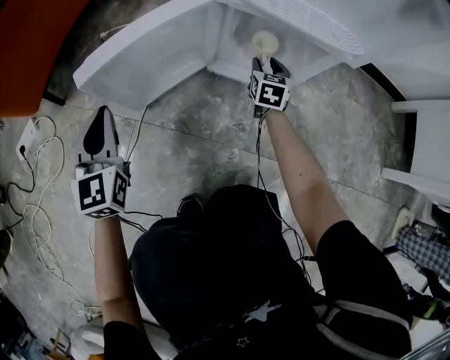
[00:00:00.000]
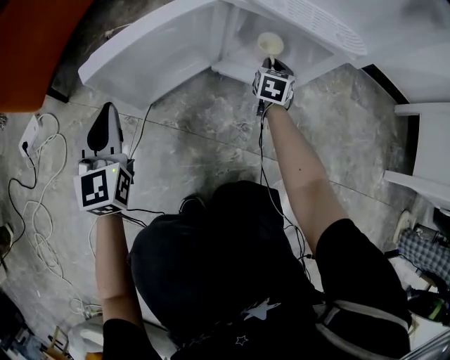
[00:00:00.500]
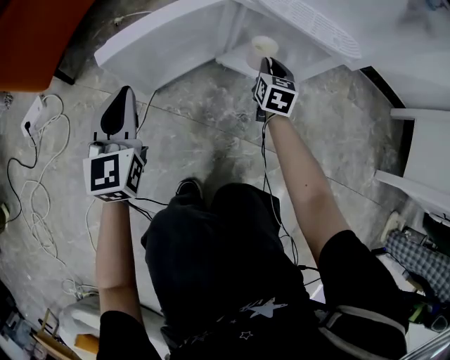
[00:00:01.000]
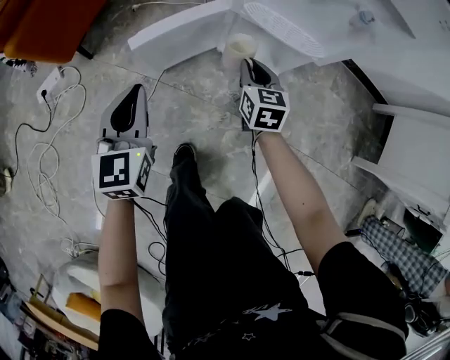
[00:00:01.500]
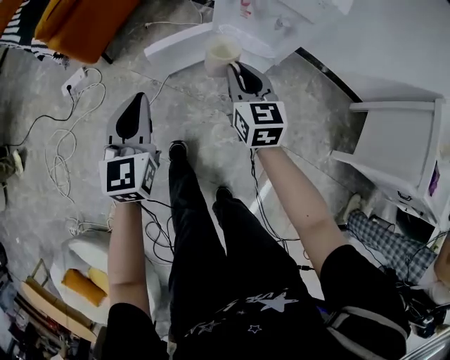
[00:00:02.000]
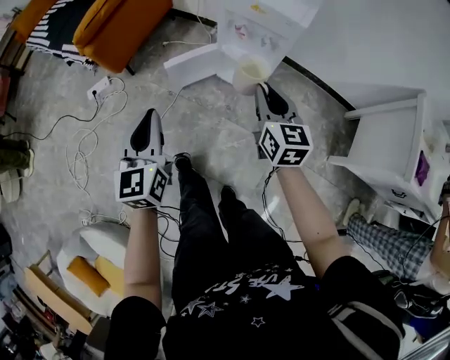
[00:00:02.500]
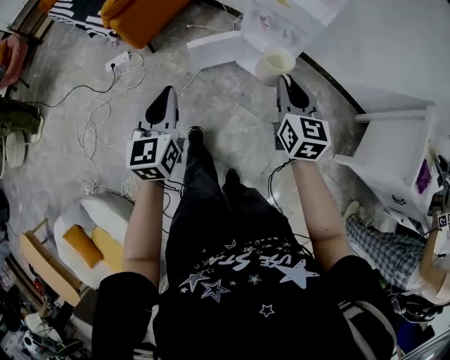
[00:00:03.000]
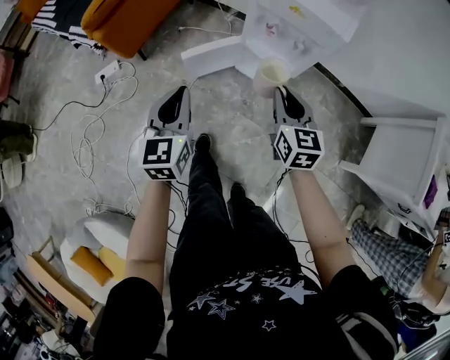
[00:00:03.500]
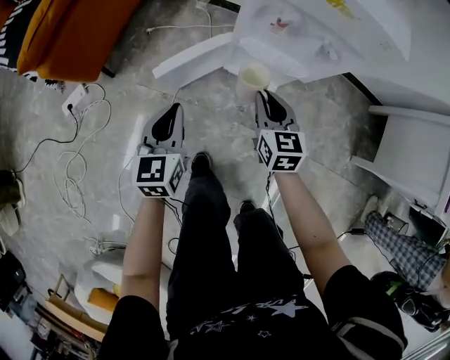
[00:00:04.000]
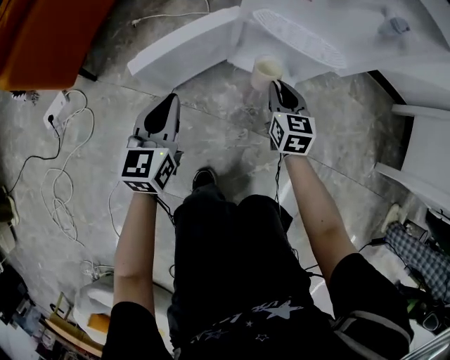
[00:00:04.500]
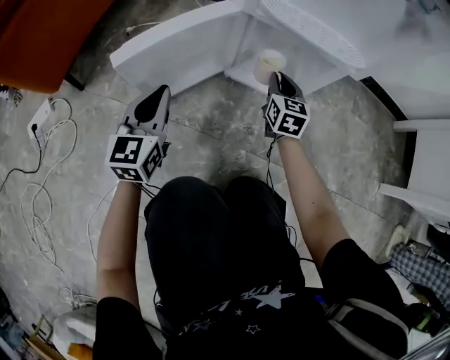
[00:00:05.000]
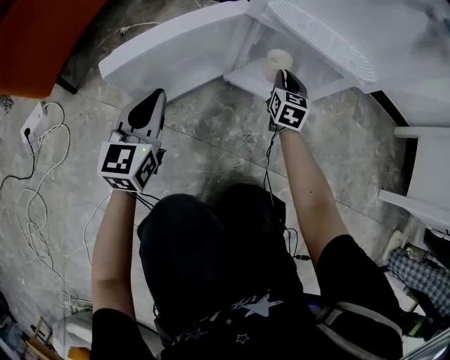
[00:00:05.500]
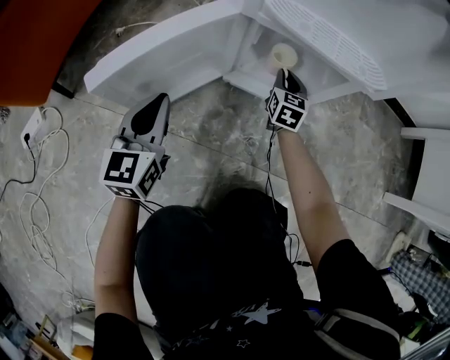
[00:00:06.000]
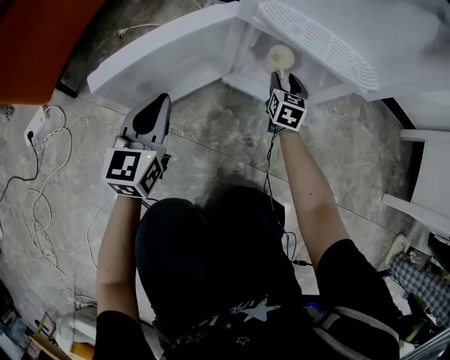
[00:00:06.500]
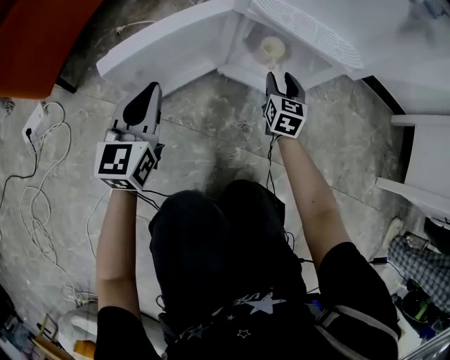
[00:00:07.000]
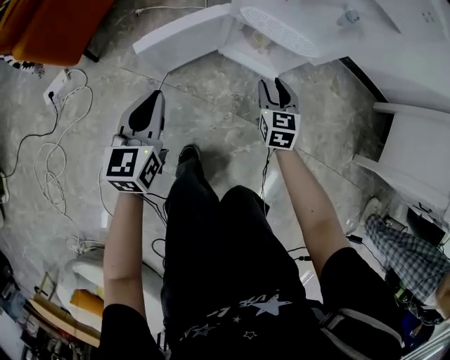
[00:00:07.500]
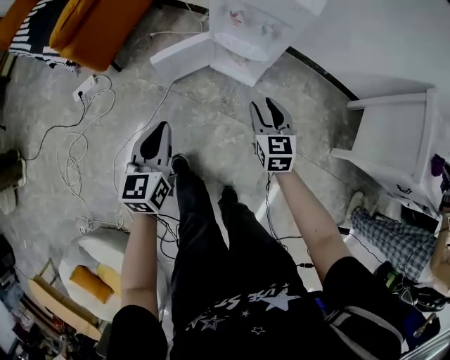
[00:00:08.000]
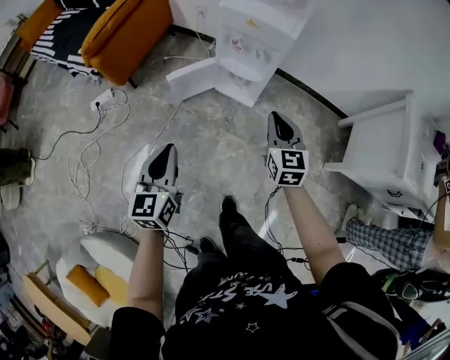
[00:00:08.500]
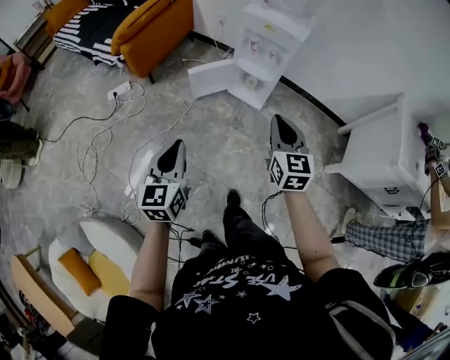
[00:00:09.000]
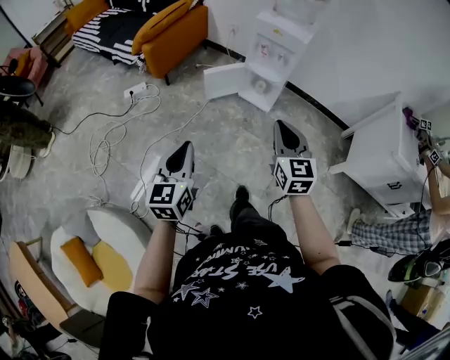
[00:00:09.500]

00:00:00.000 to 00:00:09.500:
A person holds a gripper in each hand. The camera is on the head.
00:00:00.000 to 00:00:02.000: Both grippers move upward and backward, approximately 50 cm. The right gripper turns by about 30 degrees, and closes up.
00:00:02.000 to 00:00:04.000: The grippers both shift downward and forward by roughly 15 cm.
00:00:04.000 to 00:00:05.500: The right gripper is displaced downward and forward by some 40 cm, while the left gripper shifts roughly 30 cm downward.
00:00:05.500 to 00:00:07.500: The two grippers go some 25 cm upward and backward. The right gripper opens.
00:00:07.500 to 00:00:09.500: Both grippers are carried backward, approximately 50 cm. The two grippers go about 50 cm upward. The right gripper swivels approximately 30 degrees, and closes its fingers.

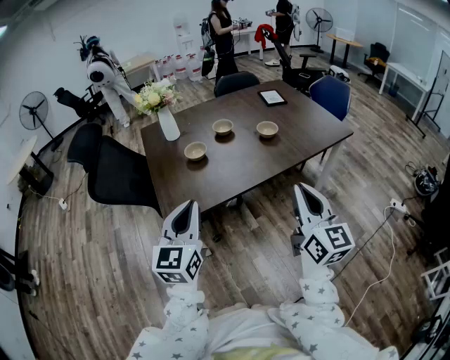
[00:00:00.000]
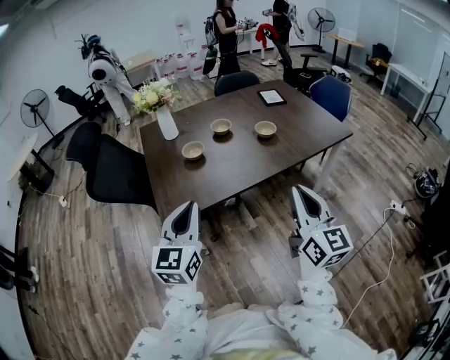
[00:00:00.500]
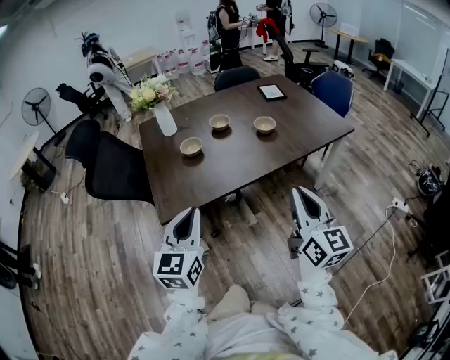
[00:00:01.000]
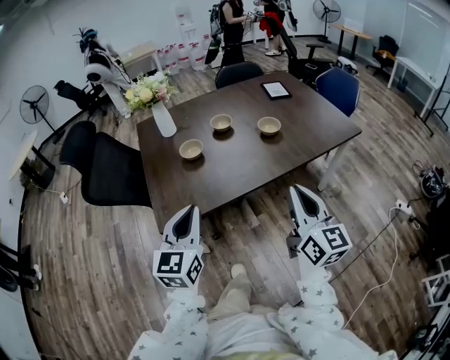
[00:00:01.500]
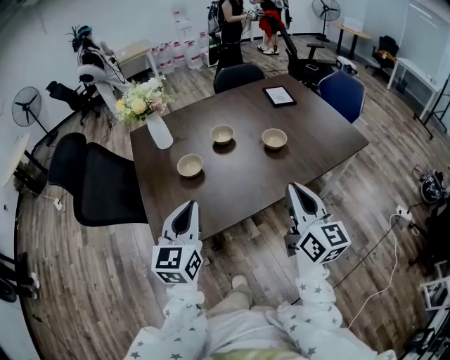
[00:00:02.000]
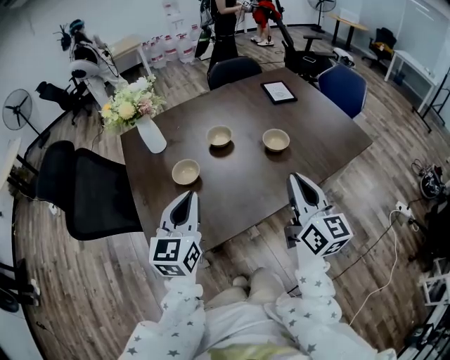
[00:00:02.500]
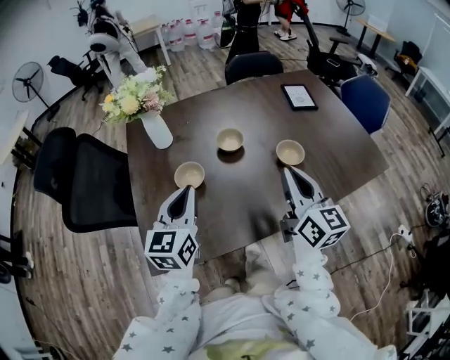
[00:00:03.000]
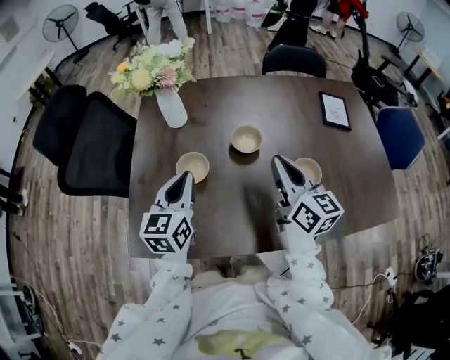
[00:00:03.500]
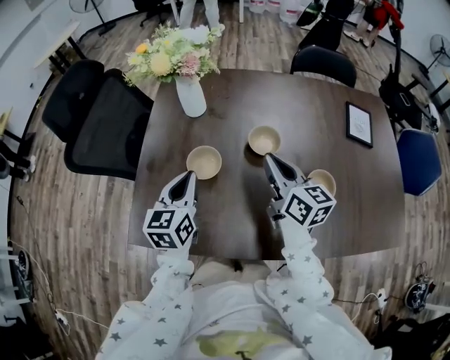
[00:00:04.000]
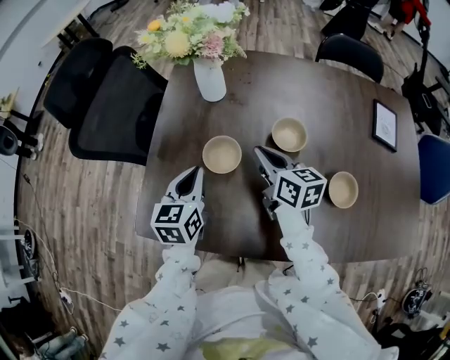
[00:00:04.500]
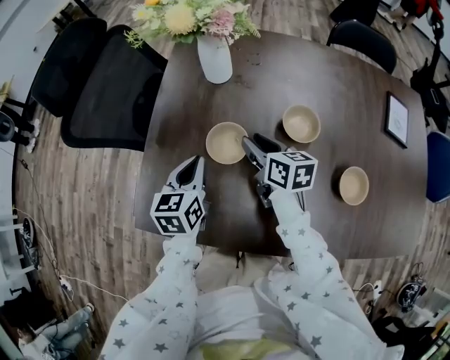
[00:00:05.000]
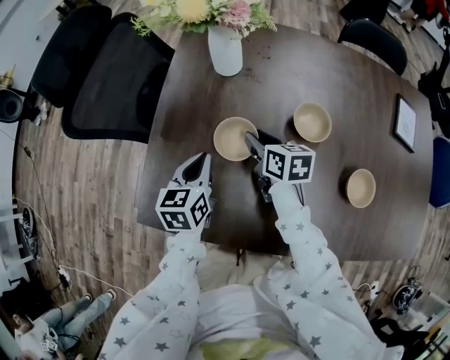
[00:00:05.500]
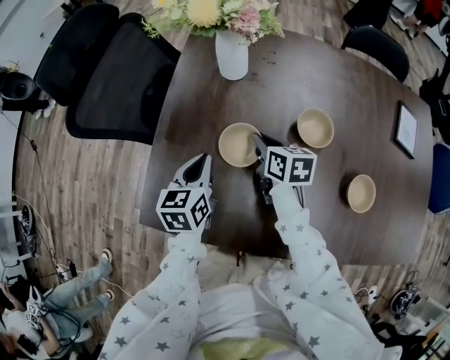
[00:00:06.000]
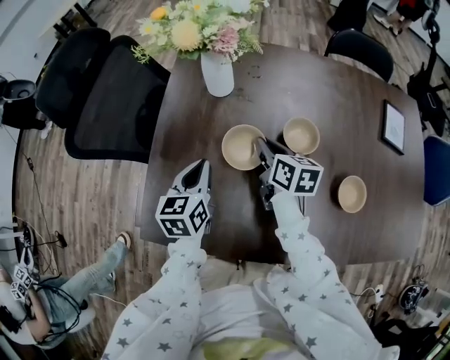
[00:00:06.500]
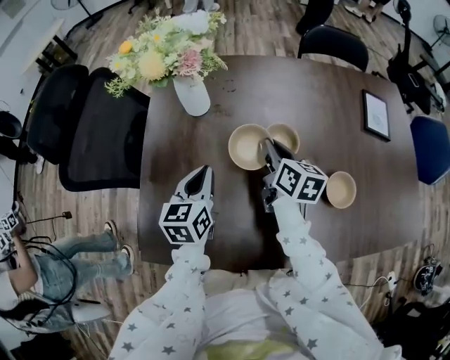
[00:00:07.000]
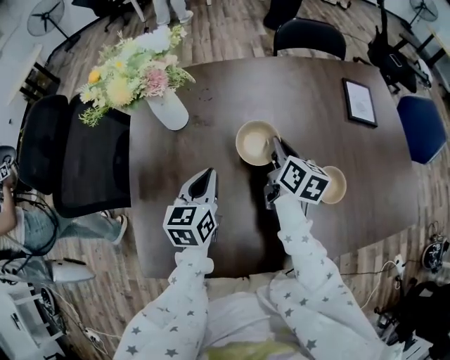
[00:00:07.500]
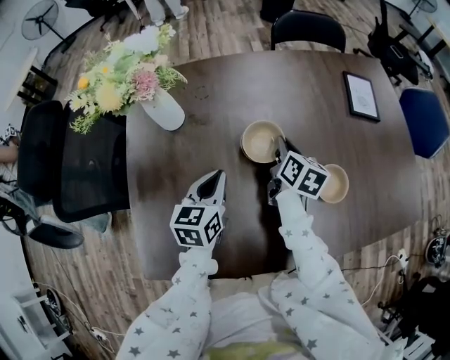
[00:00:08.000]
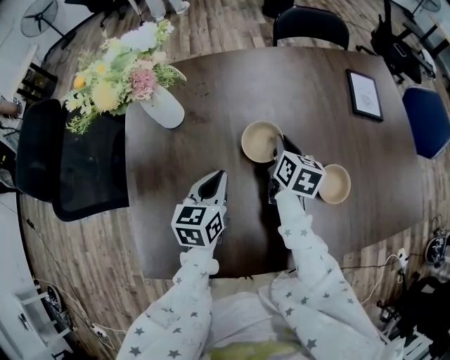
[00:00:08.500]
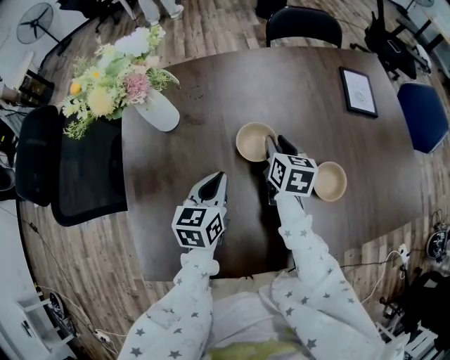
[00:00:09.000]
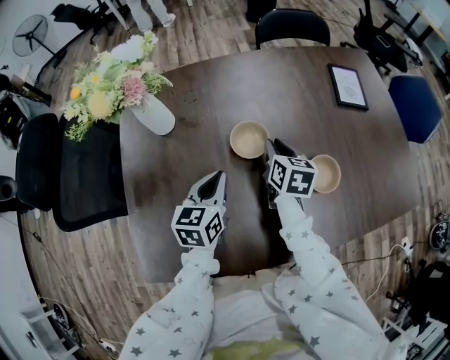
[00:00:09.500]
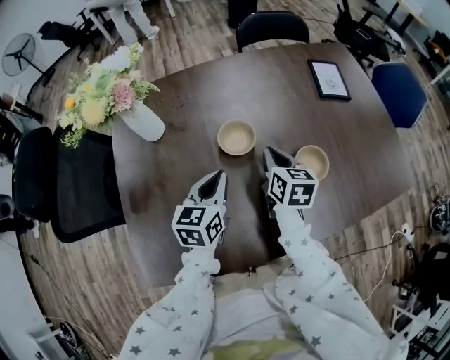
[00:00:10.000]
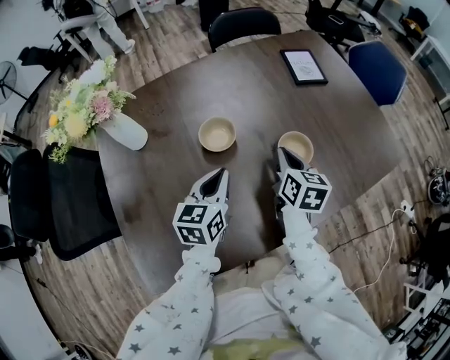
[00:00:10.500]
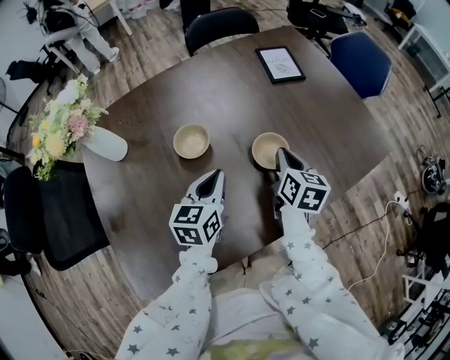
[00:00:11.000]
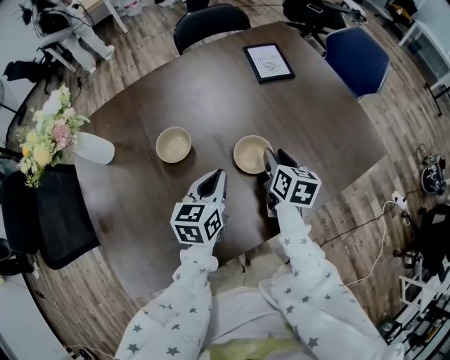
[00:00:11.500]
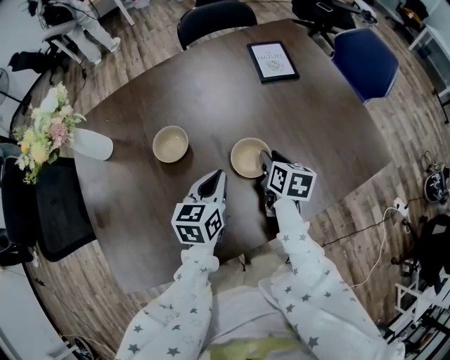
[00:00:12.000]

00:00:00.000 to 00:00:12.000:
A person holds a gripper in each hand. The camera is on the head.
00:00:00.000 to 00:00:02.000: Both grippers travel together forward, about 15 cm.
00:00:02.000 to 00:00:04.000: The left gripper ends up some 25 cm from where it was, and swivels approximately 30 degrees. The right gripper changes place by about 35 cm, and rotates roughly 40 degrees.
00:00:04.000 to 00:00:06.000: The right gripper goes some 25 cm downward, to the left and forward, swivels about 30 degrees, and opens, then closes again; the left gripper travels downward and to the left by about 10 cm.
00:00:06.000 to 00:00:08.000: The right gripper changes place by roughly 25 cm, and changes its angle by approximately 40 degrees, while the left gripper moves roughly 20 cm, and changes its angle by about 20 degrees.
00:00:08.000 to 00:00:10.000: The left gripper is displaced to the right by some 5 cm, while the right gripper heads backward, covering about 5 cm.
00:00:10.000 to 00:00:12.000: Both grippers move to the right, roughly 20 cm. The right gripper opens its fingers.

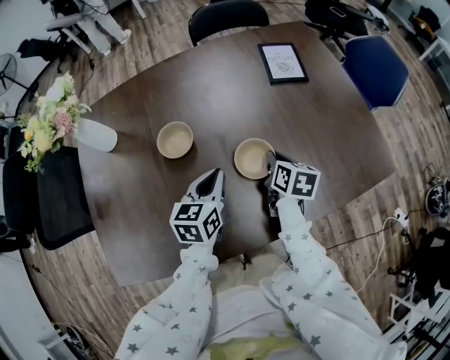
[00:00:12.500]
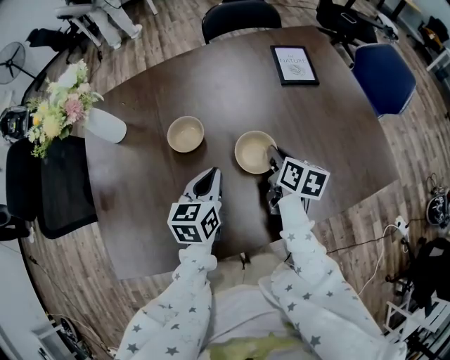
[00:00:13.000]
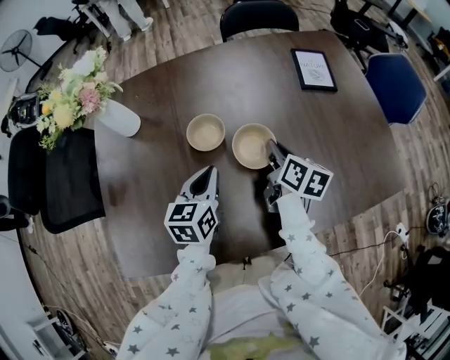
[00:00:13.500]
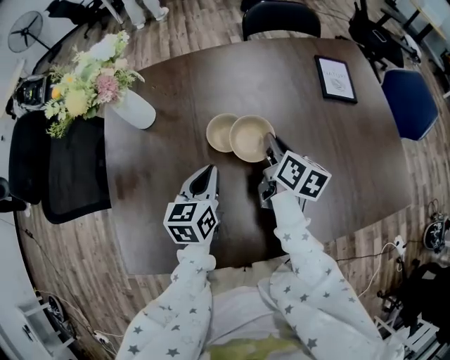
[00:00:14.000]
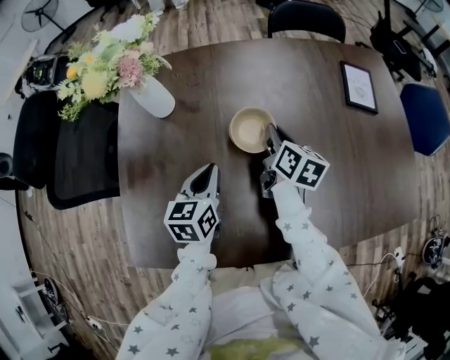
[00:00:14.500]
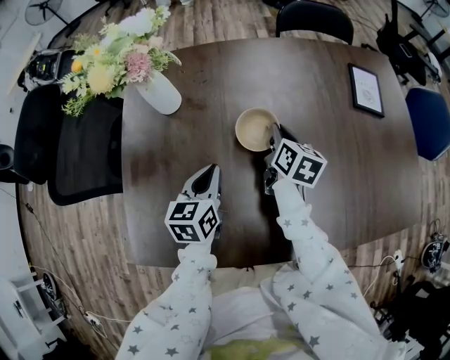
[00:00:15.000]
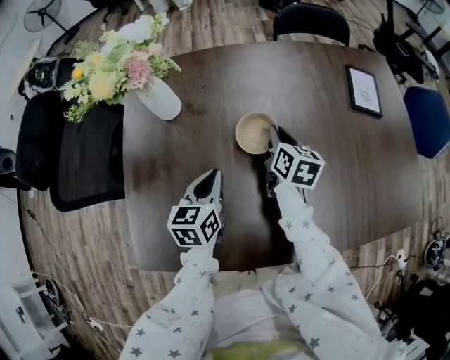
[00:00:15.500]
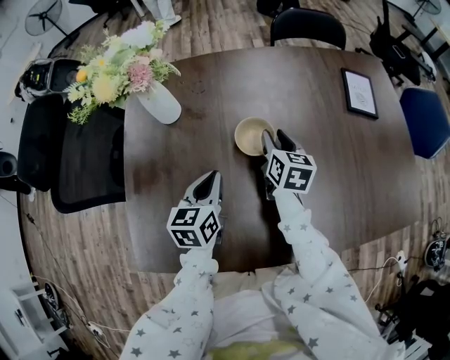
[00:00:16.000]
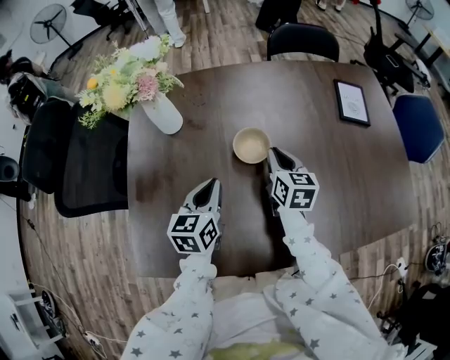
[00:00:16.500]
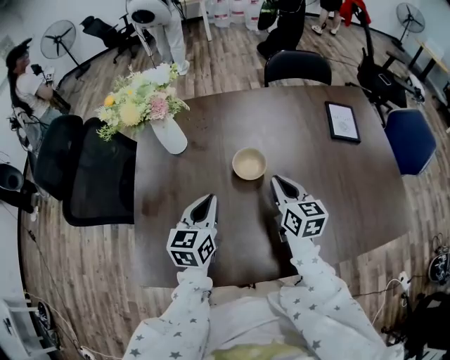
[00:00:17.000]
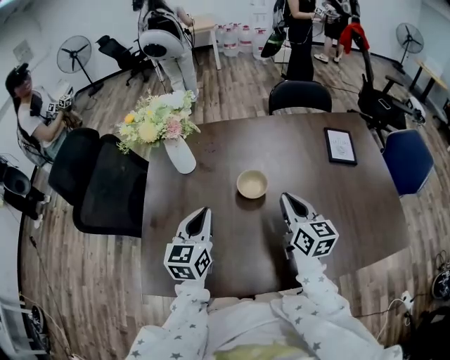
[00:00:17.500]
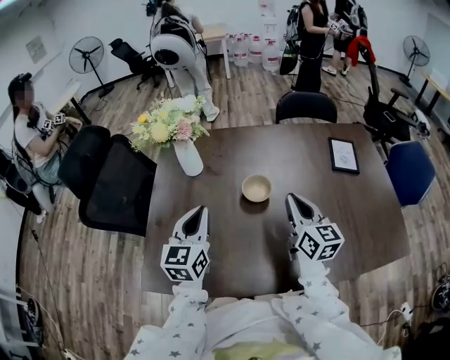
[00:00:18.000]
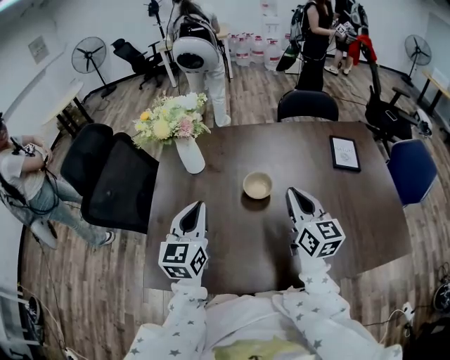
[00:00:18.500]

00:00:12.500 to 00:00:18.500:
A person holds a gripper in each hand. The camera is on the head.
00:00:12.500 to 00:00:14.500: The right gripper moves to the left and forward, approximately 25 cm. Meanwhile the left gripper heads to the left, covering approximately 20 cm.
00:00:14.500 to 00:00:16.500: The right gripper rotates about 20 degrees, and opens and closes again.
00:00:16.500 to 00:00:18.500: The right gripper goes some 20 cm upward and backward, and swivels roughly 20 degrees. The left gripper shifts about 15 cm upward, and swivels approximately 20 degrees.
